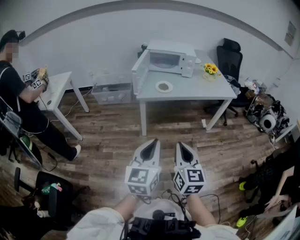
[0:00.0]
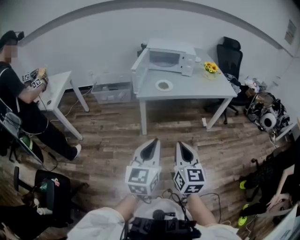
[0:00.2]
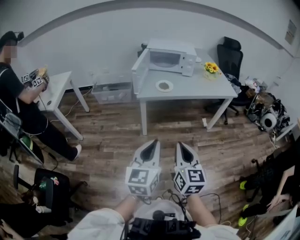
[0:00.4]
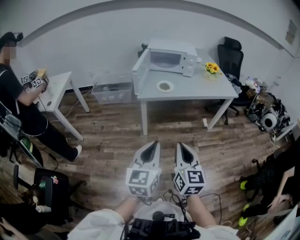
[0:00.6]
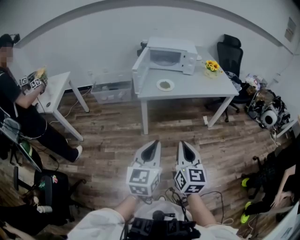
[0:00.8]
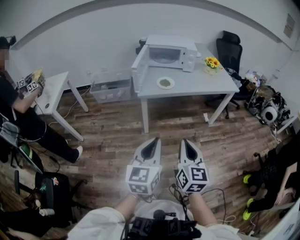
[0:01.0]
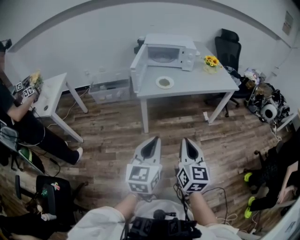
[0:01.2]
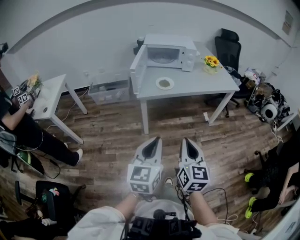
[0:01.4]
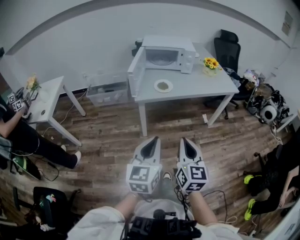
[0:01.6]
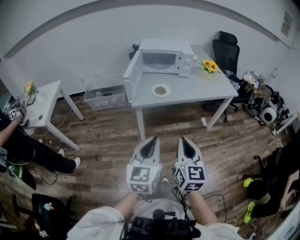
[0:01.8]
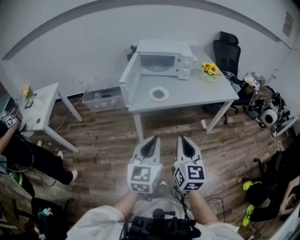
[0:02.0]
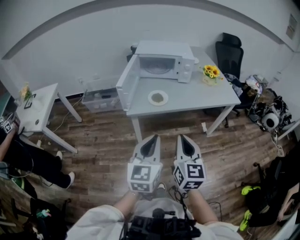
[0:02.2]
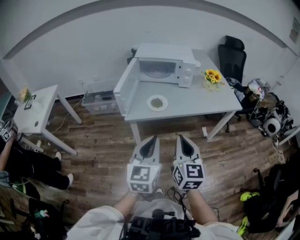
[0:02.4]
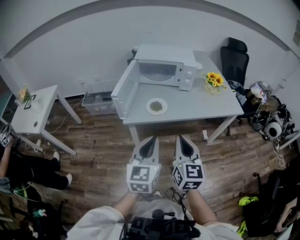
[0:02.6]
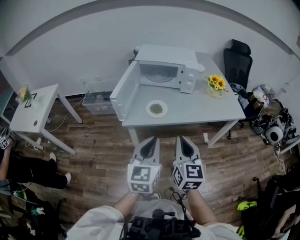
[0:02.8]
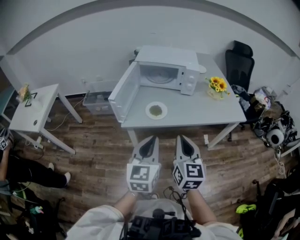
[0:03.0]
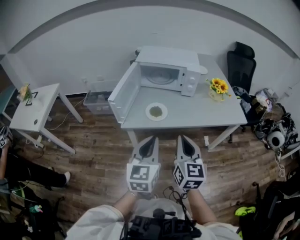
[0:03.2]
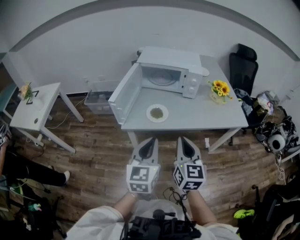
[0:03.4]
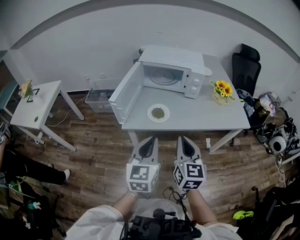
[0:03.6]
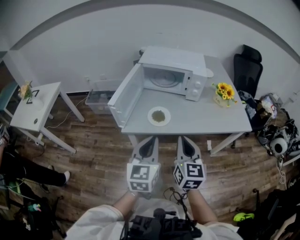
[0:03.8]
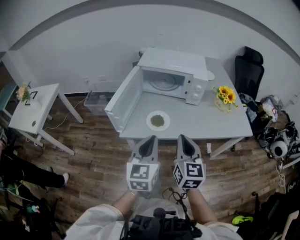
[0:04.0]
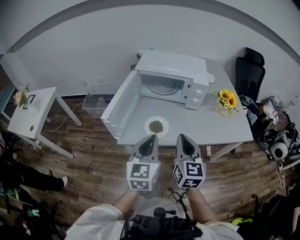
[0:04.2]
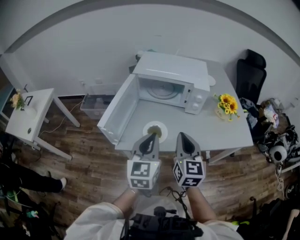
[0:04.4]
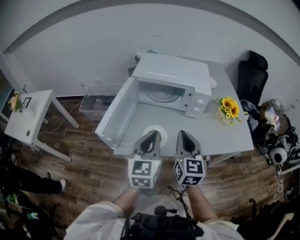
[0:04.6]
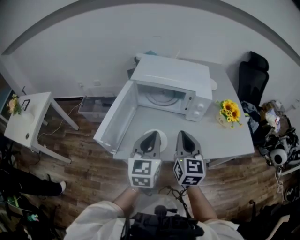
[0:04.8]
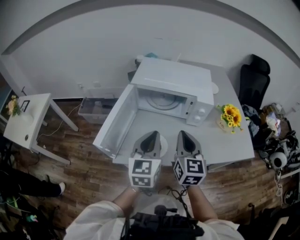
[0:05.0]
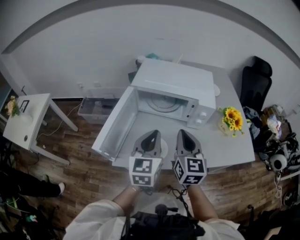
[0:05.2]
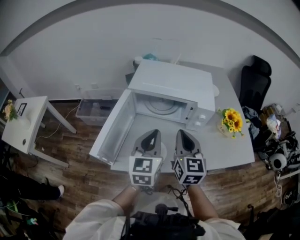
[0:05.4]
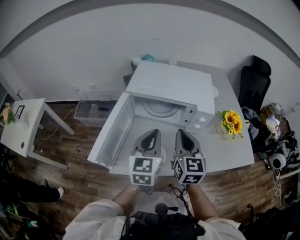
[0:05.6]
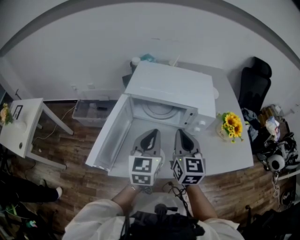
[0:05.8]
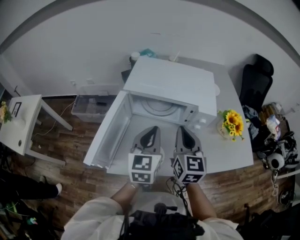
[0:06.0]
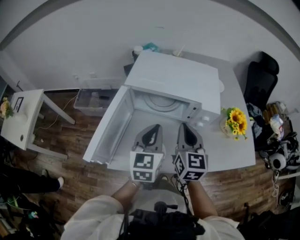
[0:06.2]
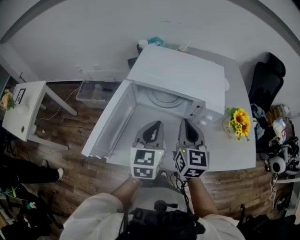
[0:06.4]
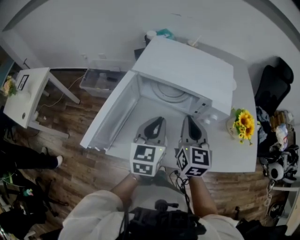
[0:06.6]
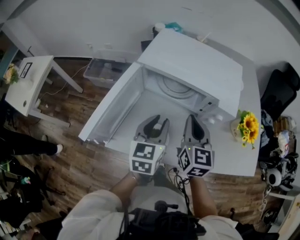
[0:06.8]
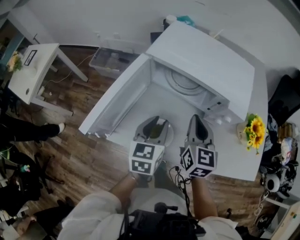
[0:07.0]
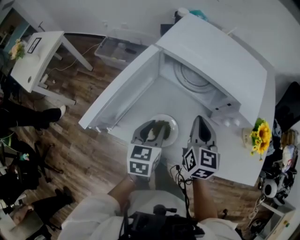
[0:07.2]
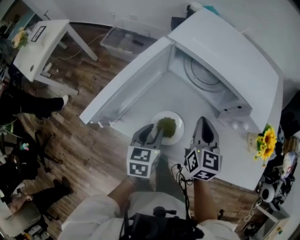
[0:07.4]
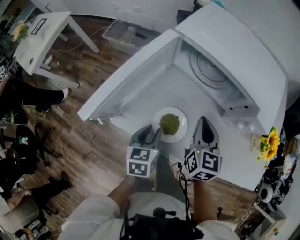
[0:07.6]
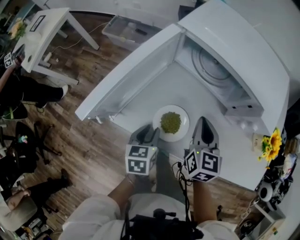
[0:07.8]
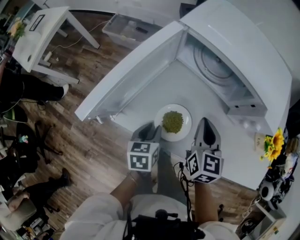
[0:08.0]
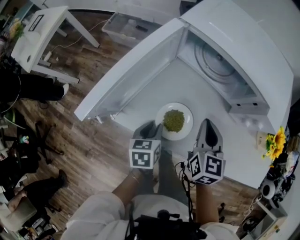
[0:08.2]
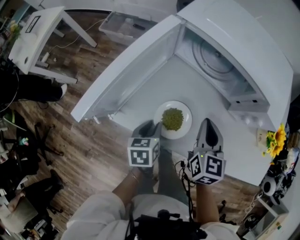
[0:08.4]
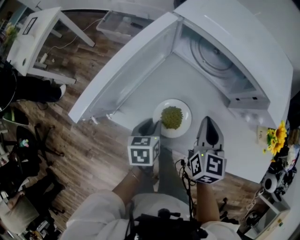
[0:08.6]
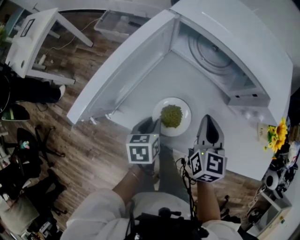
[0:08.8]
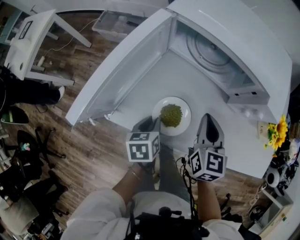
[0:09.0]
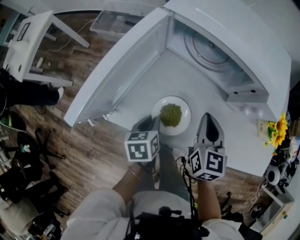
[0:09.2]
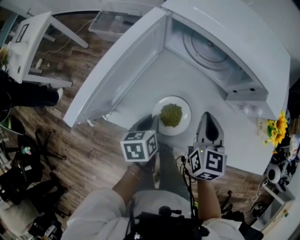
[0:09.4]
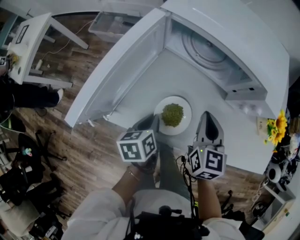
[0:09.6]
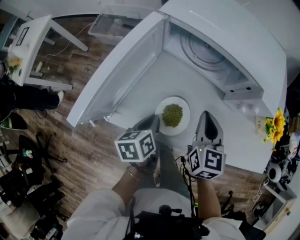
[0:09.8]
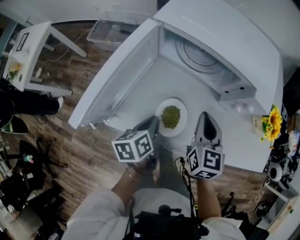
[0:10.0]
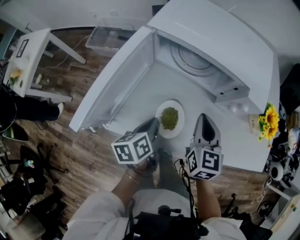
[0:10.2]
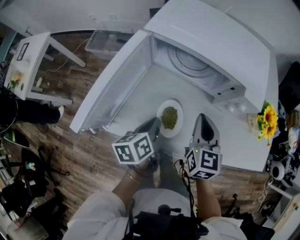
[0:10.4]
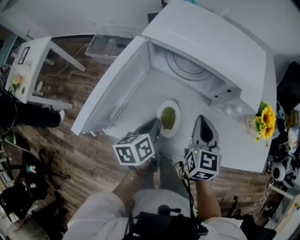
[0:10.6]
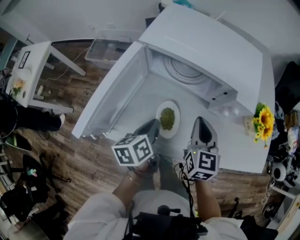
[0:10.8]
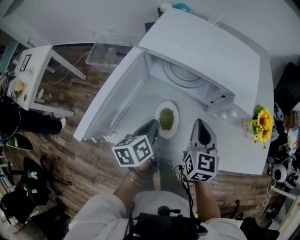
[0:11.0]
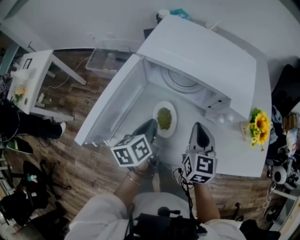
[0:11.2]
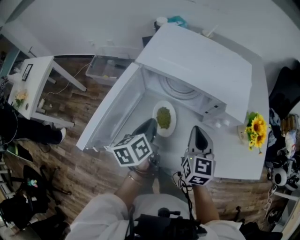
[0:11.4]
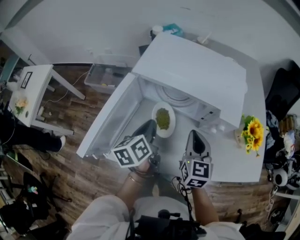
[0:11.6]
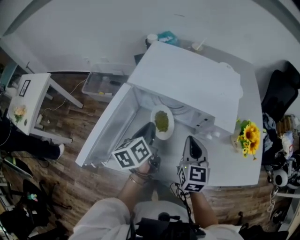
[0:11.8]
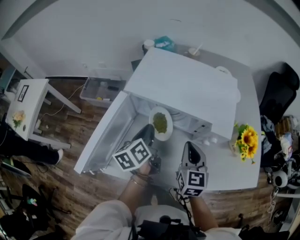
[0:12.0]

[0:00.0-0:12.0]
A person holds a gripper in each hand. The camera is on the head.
0:00.0 to 0:01.6: Both grippers travel together forward, about 10 cm.
0:01.6 to 0:03.0: Both grippers move forward, some 25 cm.
0:03.0 to 0:04.4: The grippers both shift forward by about 20 cm.
0:04.4 to 0:06.0: The grippers both shift forward by approximately 20 cm.
0:06.0 to 0:07.6: The left gripper is displaced downward and backward by approximately 25 cm, angles its fingers downward, by about 30 degrees, and opens up, while the right gripper goes roughly 15 cm downward, and swivels roughly 20 degrees.
0:07.6 to 0:09.0: The left gripper heads downward, covering about 5 cm.
0:09.0 to 0:10.4: The left gripper shifts roughly 10 cm upward, and swivels some 20 degrees.
0:10.4 to 0:12.0: The left gripper goes about 15 cm forward and upward. The right gripper moves approximately 5 cm.

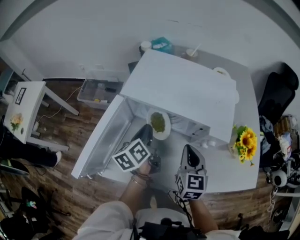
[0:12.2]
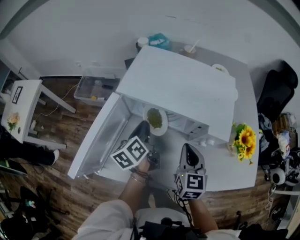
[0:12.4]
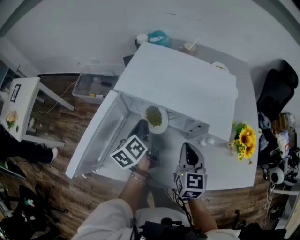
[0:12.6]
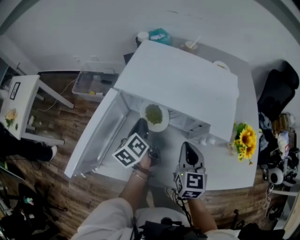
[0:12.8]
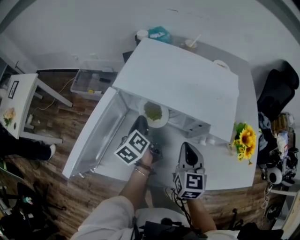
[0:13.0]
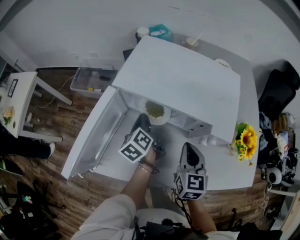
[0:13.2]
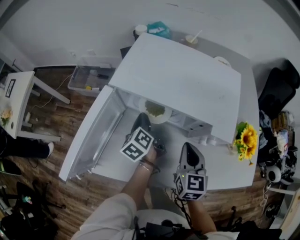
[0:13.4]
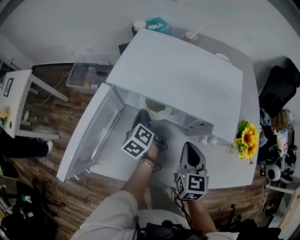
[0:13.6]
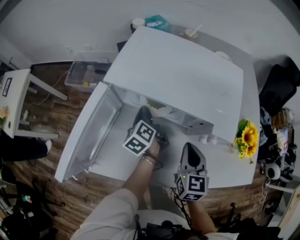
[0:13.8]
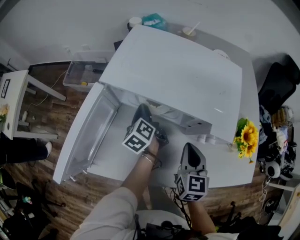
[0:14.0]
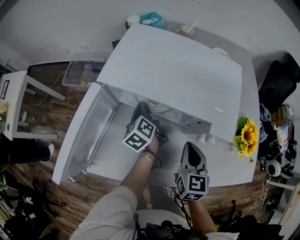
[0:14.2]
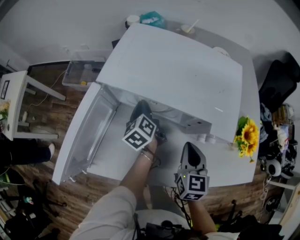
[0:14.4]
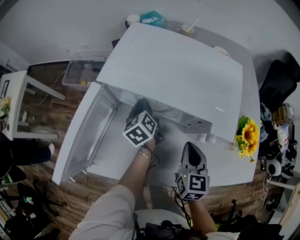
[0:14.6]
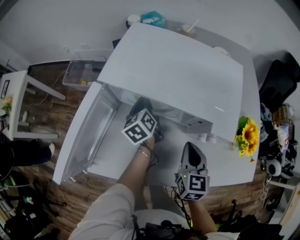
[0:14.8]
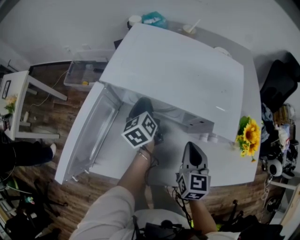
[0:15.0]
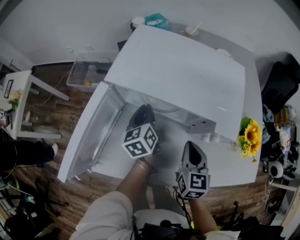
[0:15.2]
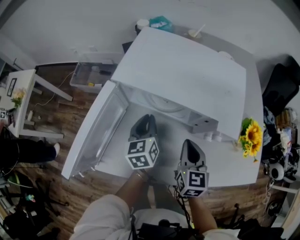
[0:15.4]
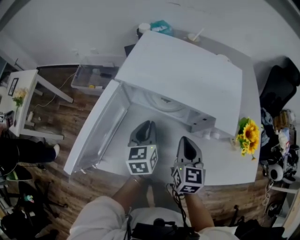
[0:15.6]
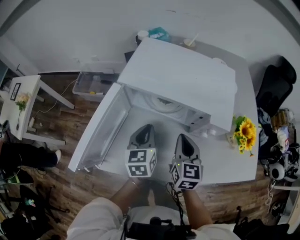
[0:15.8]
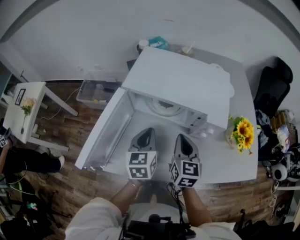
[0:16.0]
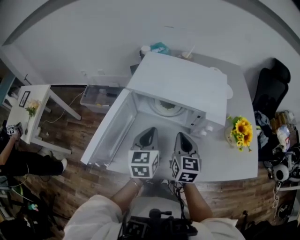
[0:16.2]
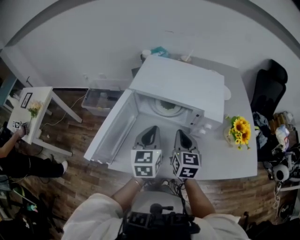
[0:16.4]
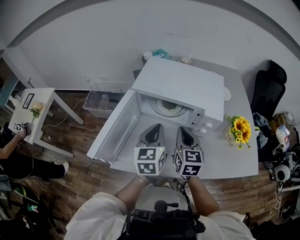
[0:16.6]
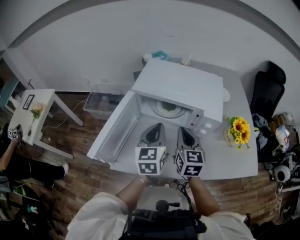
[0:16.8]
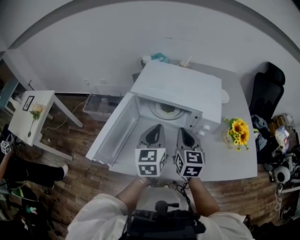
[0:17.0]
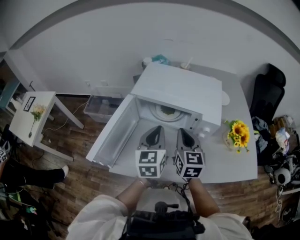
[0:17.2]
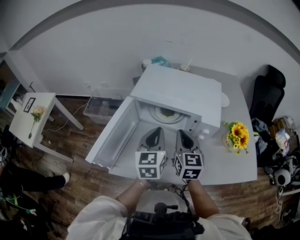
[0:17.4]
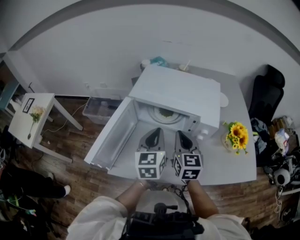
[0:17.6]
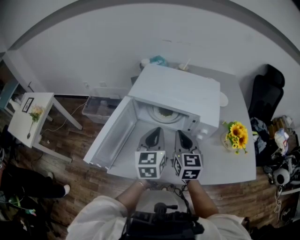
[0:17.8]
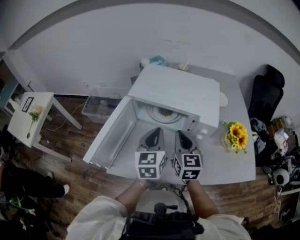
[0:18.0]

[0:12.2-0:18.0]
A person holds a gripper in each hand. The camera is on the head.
0:12.2 to 0:13.6: The left gripper moves downward and forward, roughly 10 cm.
0:13.6 to 0:15.0: The left gripper changes its angle by approximately 20 degrees.
0:15.0 to 0:16.6: The left gripper shifts about 25 cm backward and upward, and swivels roughly 30 degrees, while the right gripper travels upward and to the left by some 15 cm.
0:16.6 to 0:18.0: There are only small adjustments of the grippers.

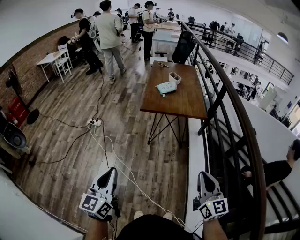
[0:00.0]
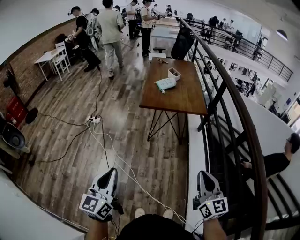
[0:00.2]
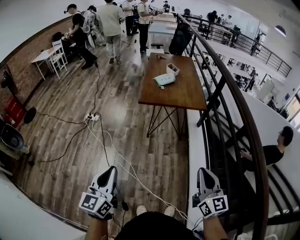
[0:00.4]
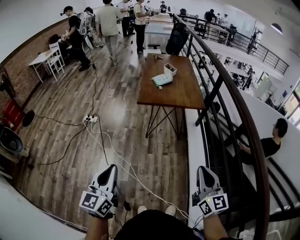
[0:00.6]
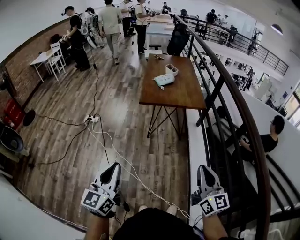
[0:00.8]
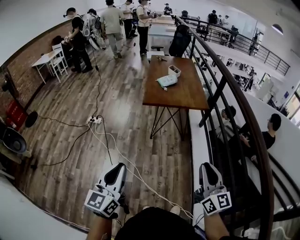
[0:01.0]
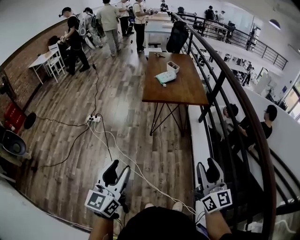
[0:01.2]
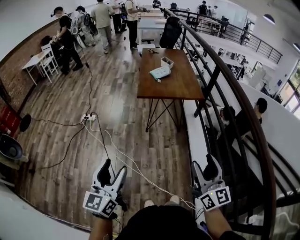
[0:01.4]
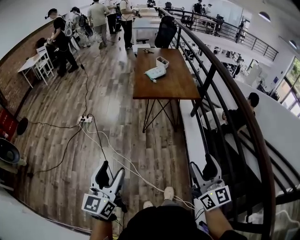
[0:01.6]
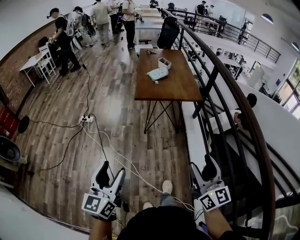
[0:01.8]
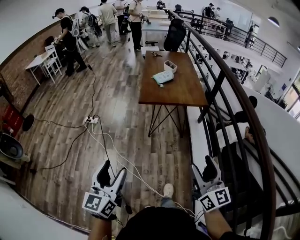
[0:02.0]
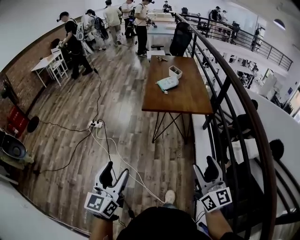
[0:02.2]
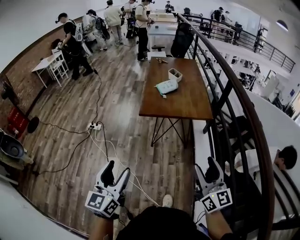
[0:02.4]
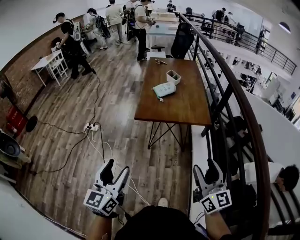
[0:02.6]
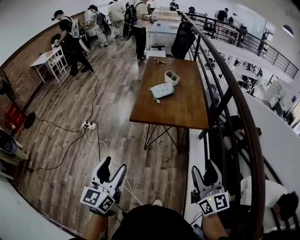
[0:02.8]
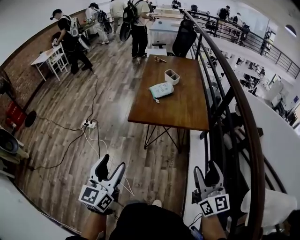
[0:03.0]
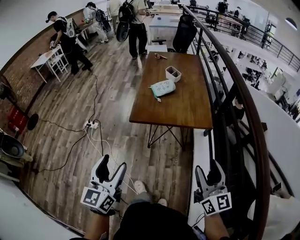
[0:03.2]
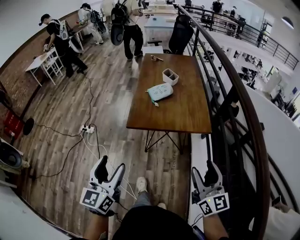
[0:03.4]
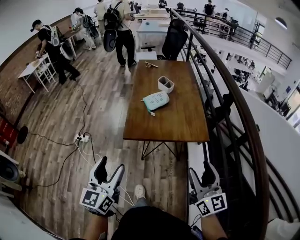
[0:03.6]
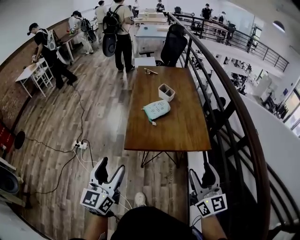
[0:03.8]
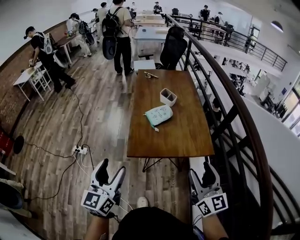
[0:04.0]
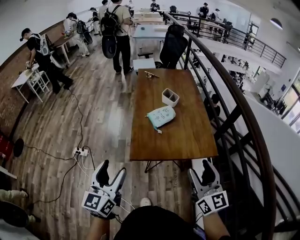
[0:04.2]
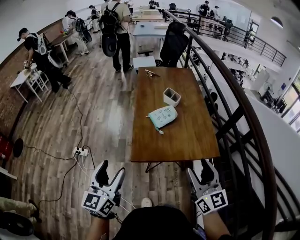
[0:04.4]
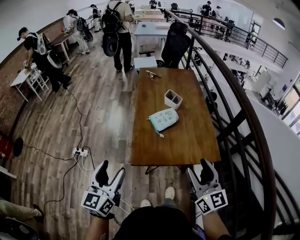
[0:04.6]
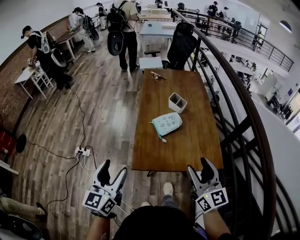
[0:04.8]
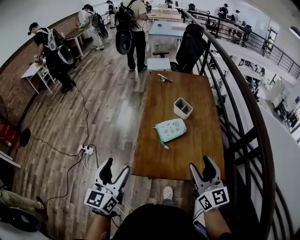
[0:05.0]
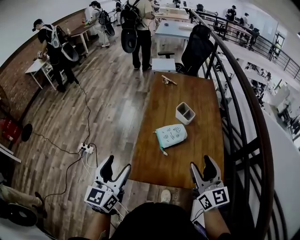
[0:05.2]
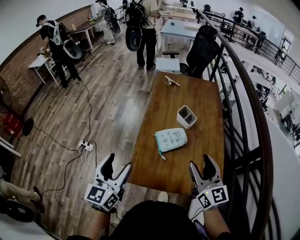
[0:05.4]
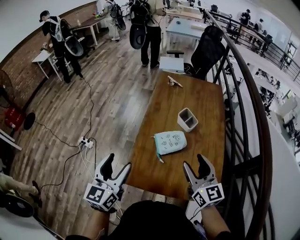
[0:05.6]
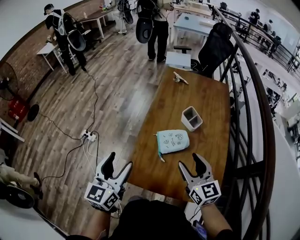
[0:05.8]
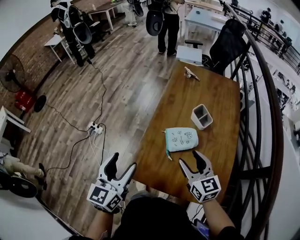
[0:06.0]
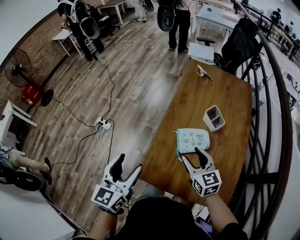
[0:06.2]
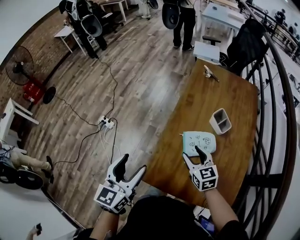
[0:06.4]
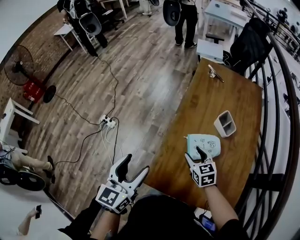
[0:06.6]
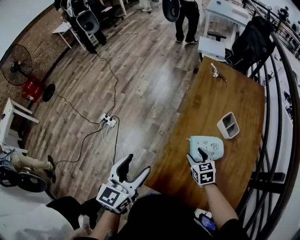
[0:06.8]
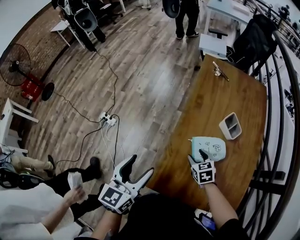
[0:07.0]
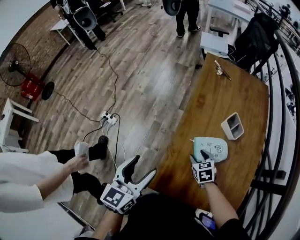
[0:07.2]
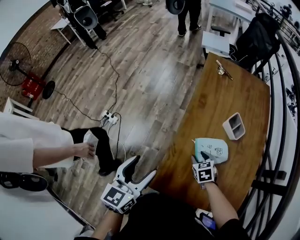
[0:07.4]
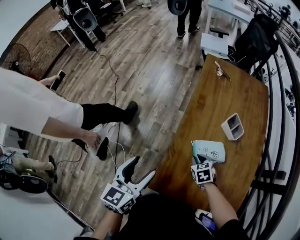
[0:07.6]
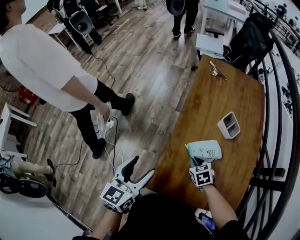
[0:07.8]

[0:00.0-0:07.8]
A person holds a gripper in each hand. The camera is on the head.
0:00.0 to 0:01.6: The left gripper opens up. The right gripper moves to the left, roughly 10 cm, and opens its fingers.
0:01.6 to 0:03.2: The grippers both shift forward and to the right by about 30 cm.
0:03.2 to 0:04.6: The left gripper goes roughly 25 cm forward. The right gripper goes approximately 25 cm forward and to the left.
0:04.6 to 0:06.2: The left gripper shifts approximately 15 cm forward and to the right, while the right gripper travels forward and downward by roughly 30 cm, and rotates about 40 degrees.
0:06.2 to 0:07.8: The left gripper heads forward and downward, covering roughly 10 cm, while the right gripper goes some 15 cm downward, angles its fingers downward, by approximately 40 degrees, and closes its fingers.
